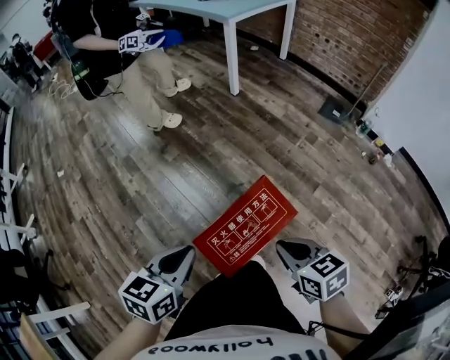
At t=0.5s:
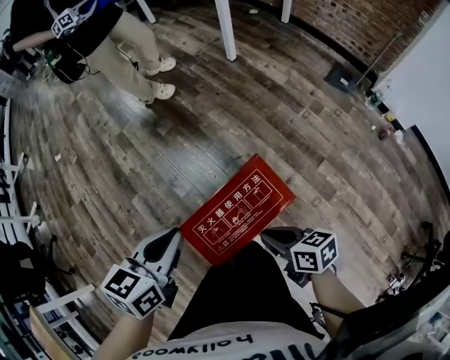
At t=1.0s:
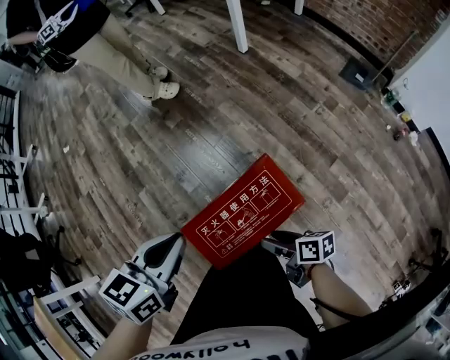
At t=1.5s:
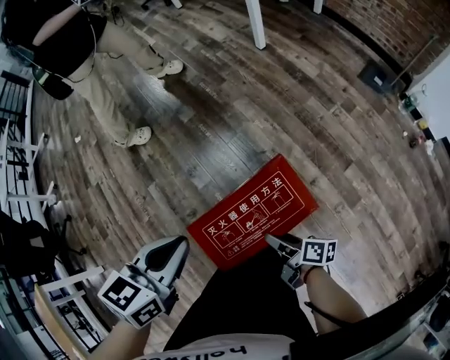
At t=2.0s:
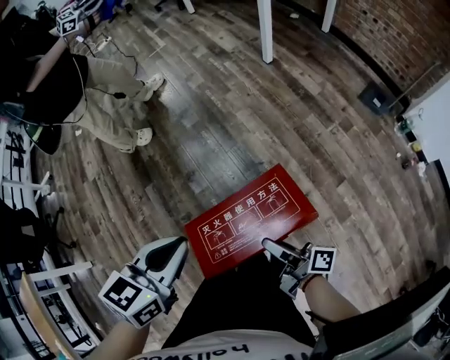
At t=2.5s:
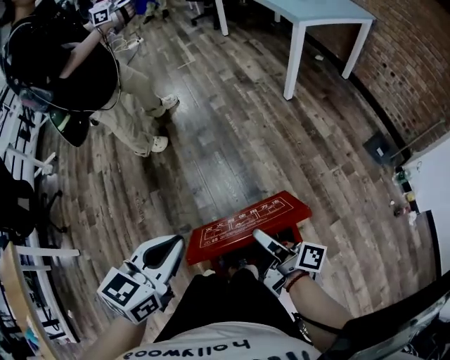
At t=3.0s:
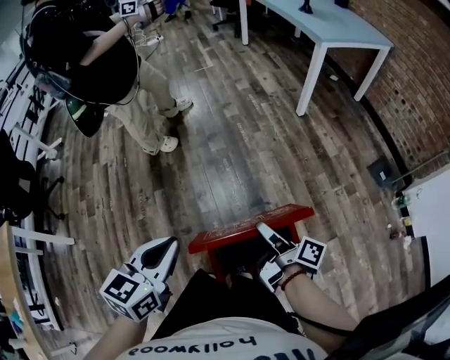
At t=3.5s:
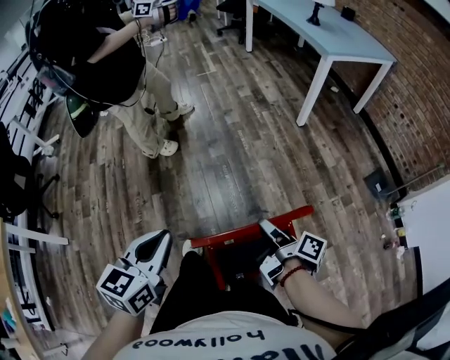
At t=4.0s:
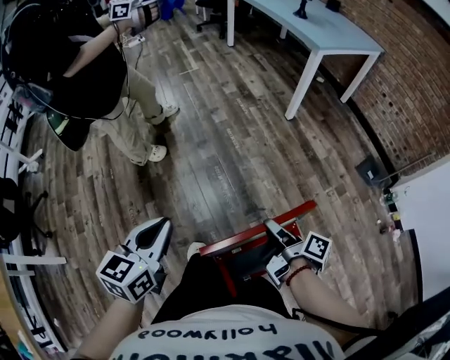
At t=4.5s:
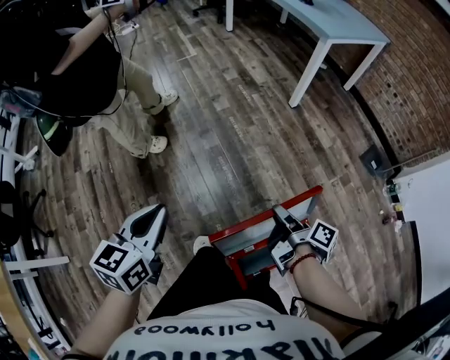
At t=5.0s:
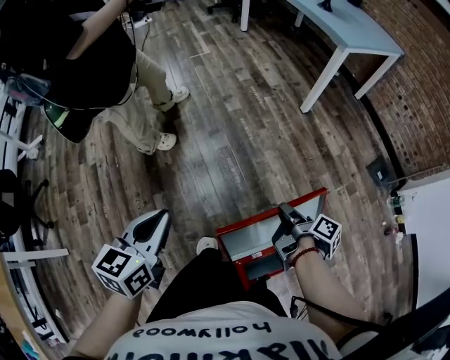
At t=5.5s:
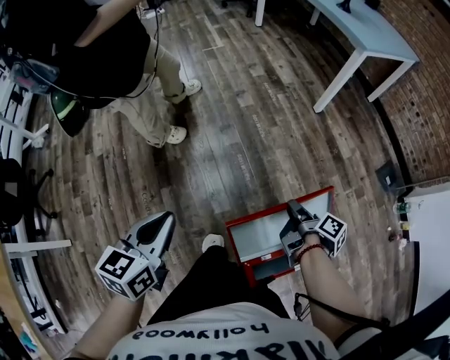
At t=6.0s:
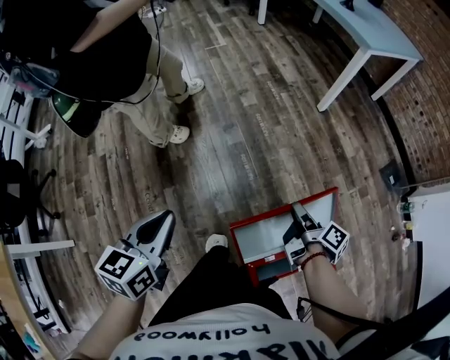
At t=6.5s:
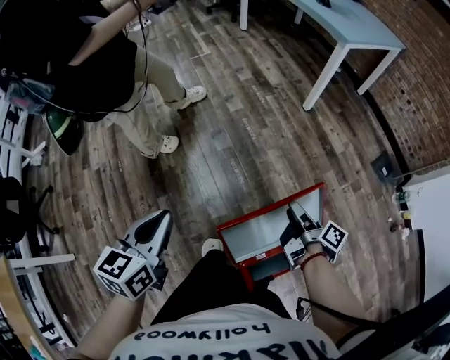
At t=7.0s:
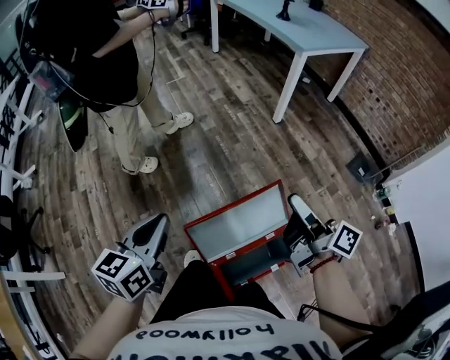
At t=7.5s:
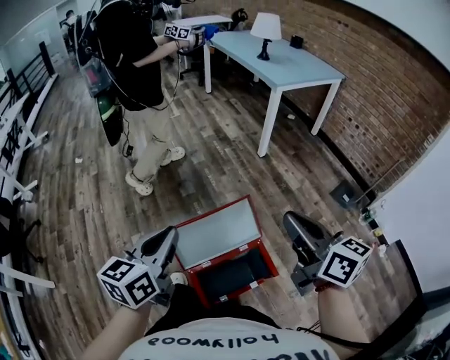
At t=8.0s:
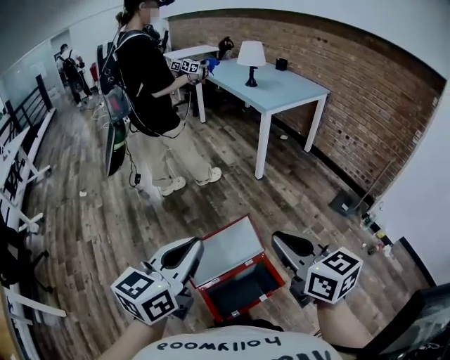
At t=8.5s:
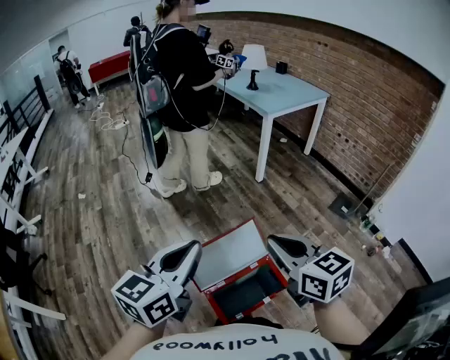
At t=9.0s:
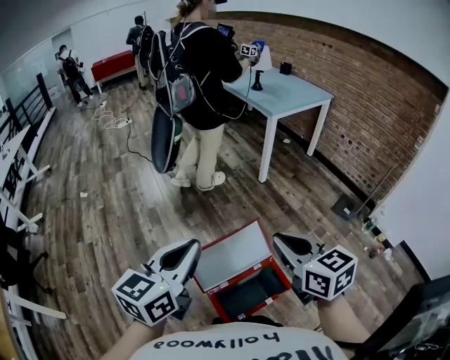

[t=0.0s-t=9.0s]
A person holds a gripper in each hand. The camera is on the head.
t=0.0s to t=2.0s: The right gripper is displaced downward by roughly 10 cm, tips its fingers upward by some 40 degrees, and opens.
t=2.0s to t=4.5s: The right gripper moves forward, some 25 cm, and turns by about 30 degrees. Meanwhile the left gripper moves to the left and forward, about 30 cm, and rotates roughly 20 degrees.
t=4.5s to t=7.0s: The left gripper goes some 5 cm to the right. The right gripper heads upward, covering some 15 cm, and changes its angle by about 40 degrees.
t=7.0s to t=9.0s: The left gripper is displaced upward, backward and to the right by some 20 cm. The right gripper travels backward and upward by about 20 cm, rolls counterclockwise, seen from behind, by some 60 degrees, and closes up.

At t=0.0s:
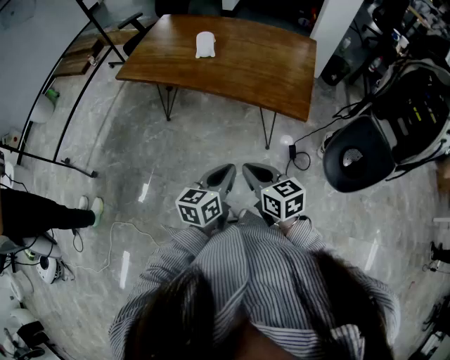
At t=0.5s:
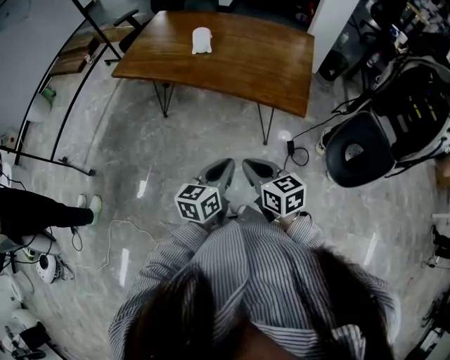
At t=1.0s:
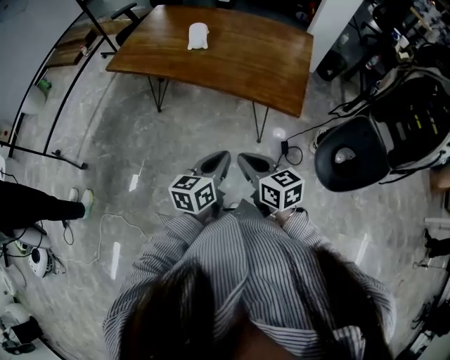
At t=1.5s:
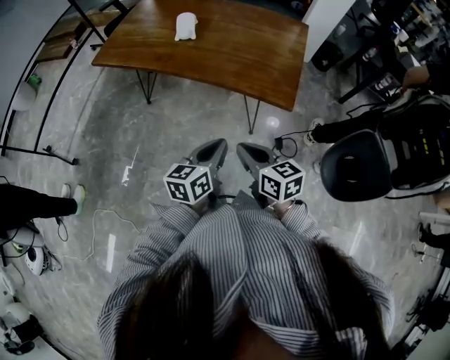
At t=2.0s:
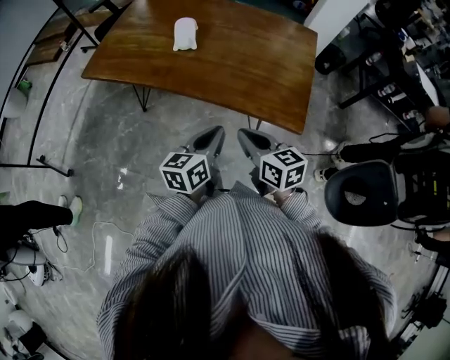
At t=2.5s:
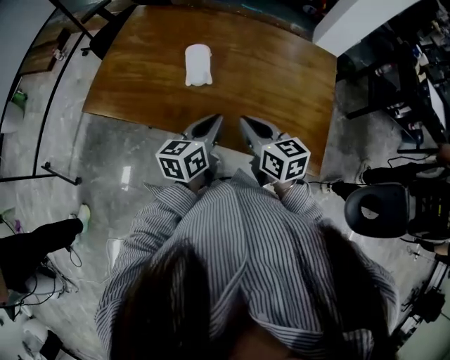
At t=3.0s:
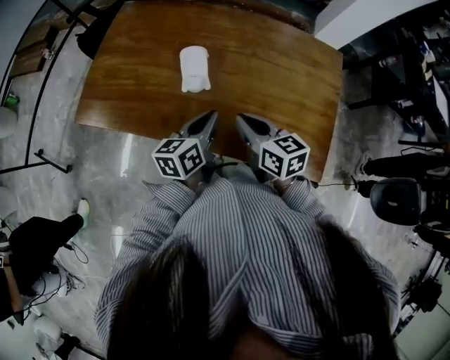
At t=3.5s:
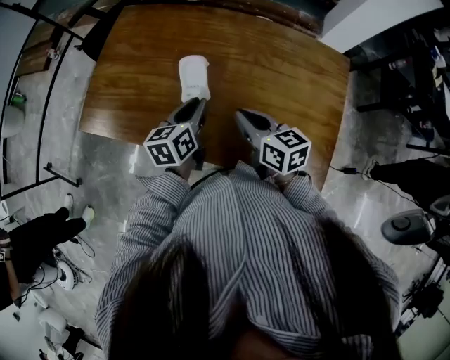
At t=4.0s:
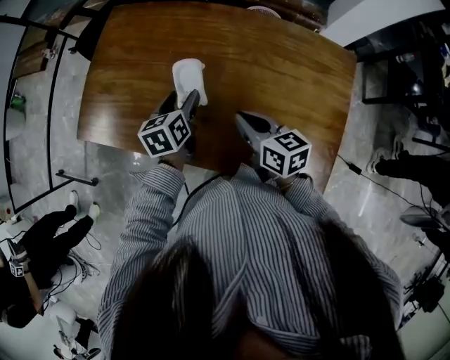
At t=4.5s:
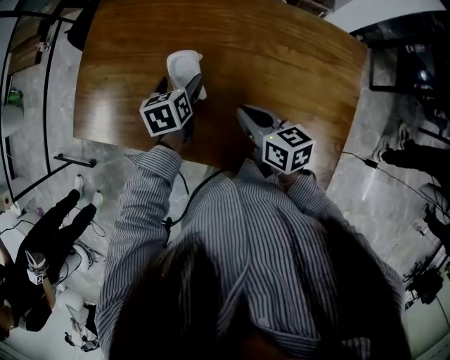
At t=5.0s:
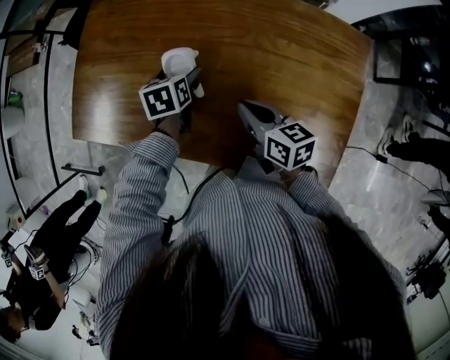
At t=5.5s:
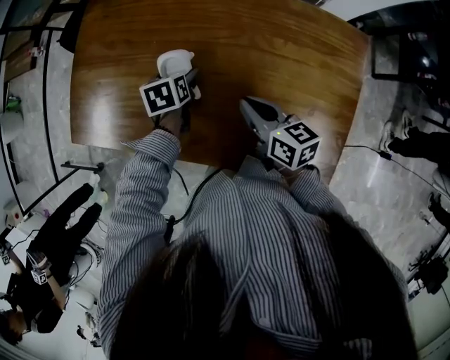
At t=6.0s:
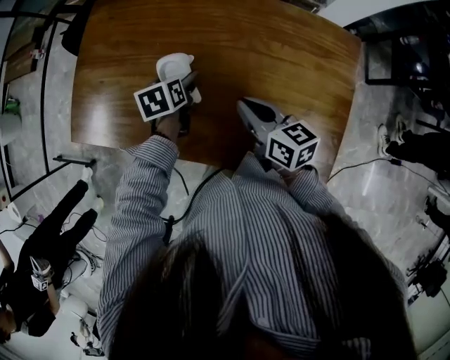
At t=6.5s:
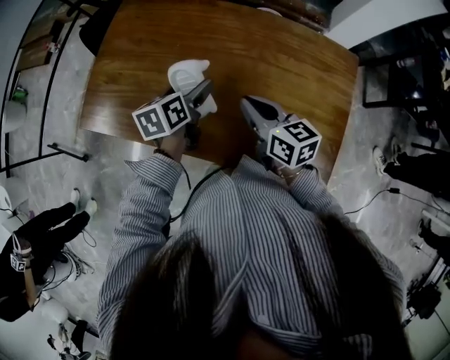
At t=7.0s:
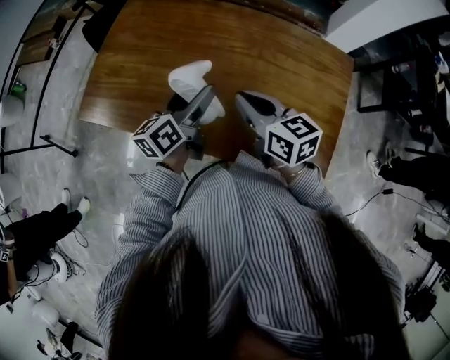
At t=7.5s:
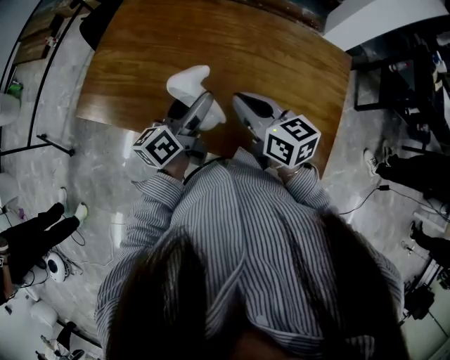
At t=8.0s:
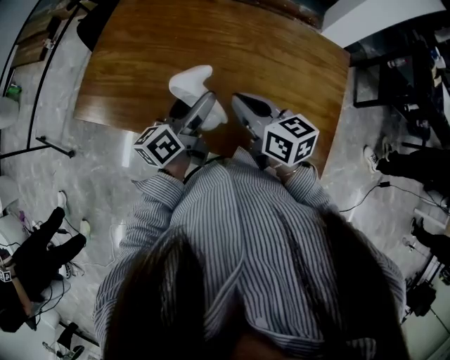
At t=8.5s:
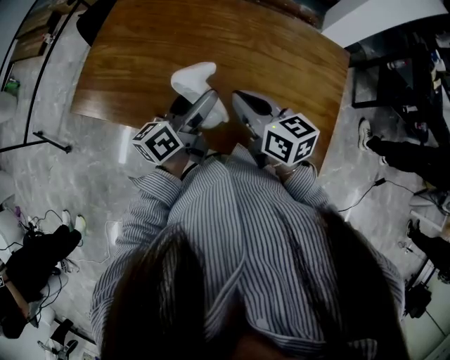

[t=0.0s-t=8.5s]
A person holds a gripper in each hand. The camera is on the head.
t=0.0s to t=2.0s: The two grippers go approximately 20 cm forward.
t=2.0s to t=4.0s: The grippers both shift forward by about 40 cm. The left gripper swivels about 30 degrees, and opens up.
t=4.0s to t=6.5s: The left gripper moves approximately 10 cm downward and comes back, and opens up.
t=6.5s to t=8.5s: The right gripper shifts by about 5 cm; the left gripper goes about 10 cm backward and upward, and tilts its fingers some 30 degrees upward.

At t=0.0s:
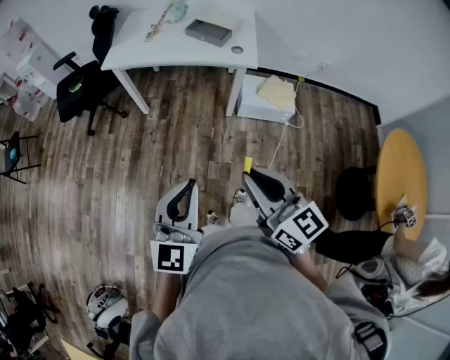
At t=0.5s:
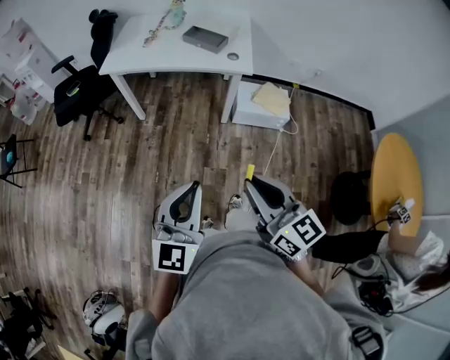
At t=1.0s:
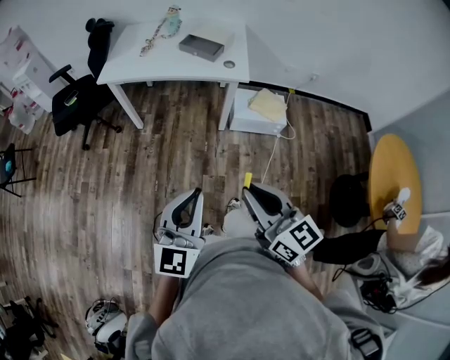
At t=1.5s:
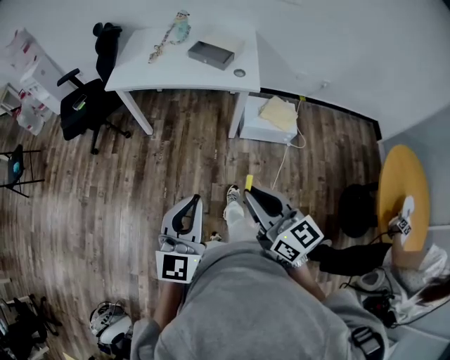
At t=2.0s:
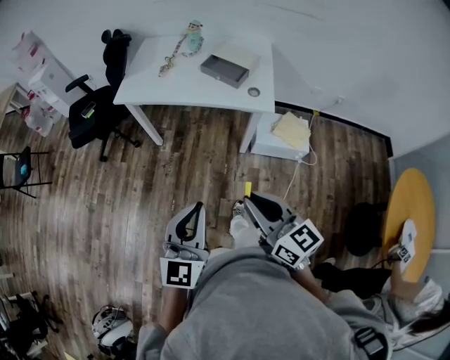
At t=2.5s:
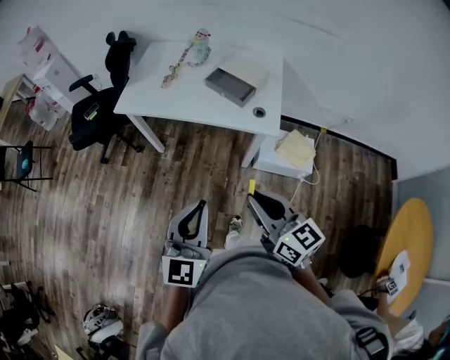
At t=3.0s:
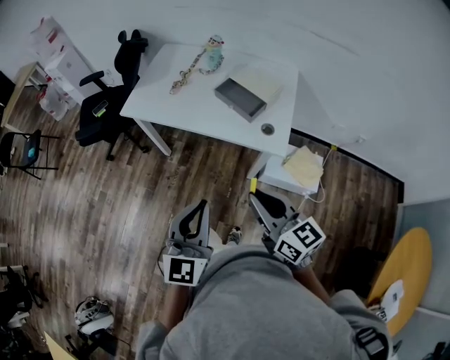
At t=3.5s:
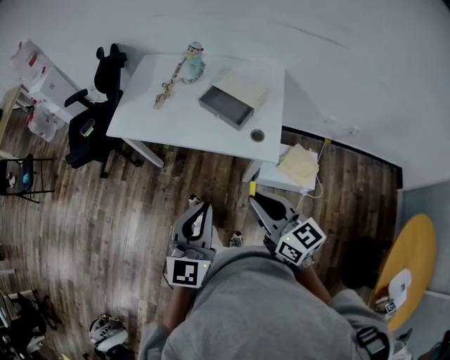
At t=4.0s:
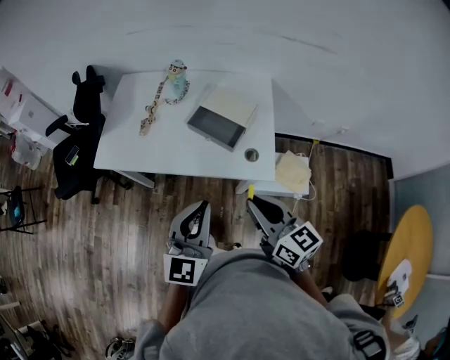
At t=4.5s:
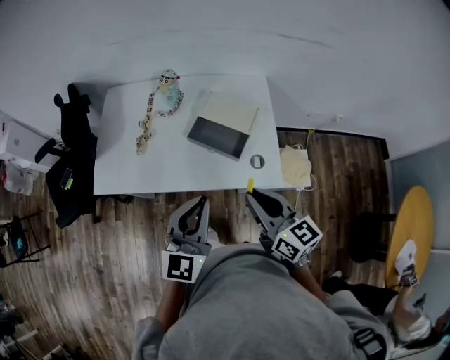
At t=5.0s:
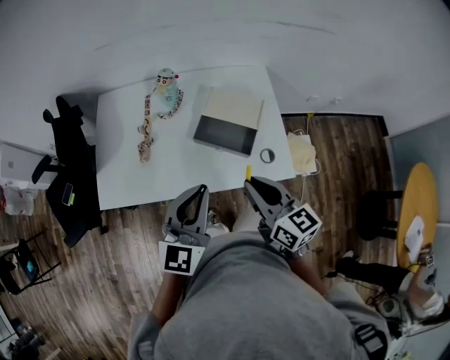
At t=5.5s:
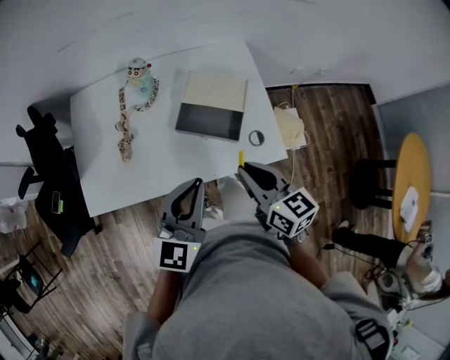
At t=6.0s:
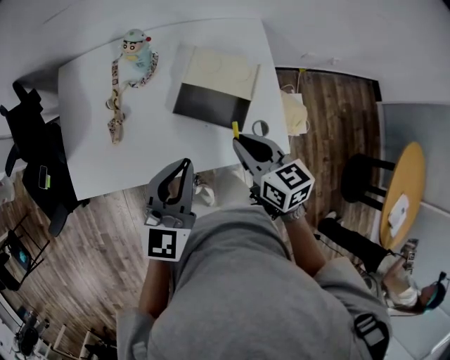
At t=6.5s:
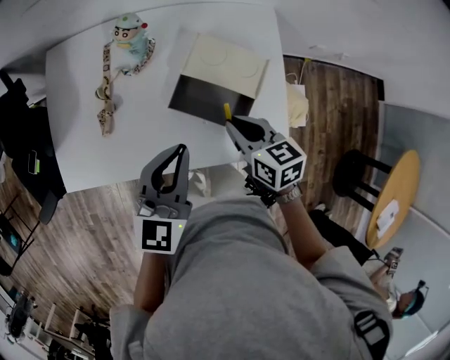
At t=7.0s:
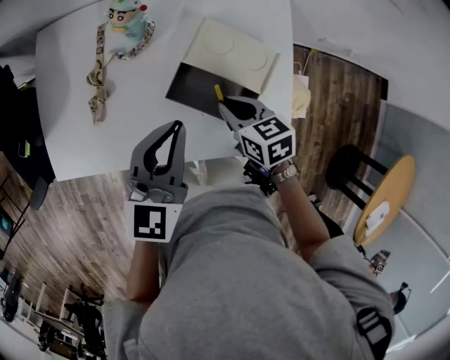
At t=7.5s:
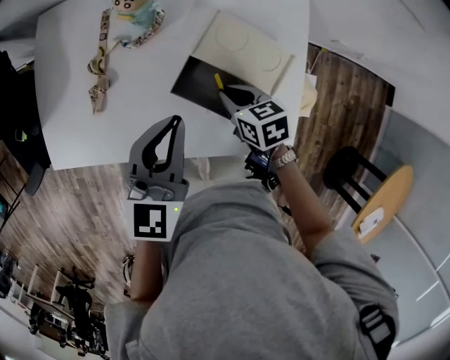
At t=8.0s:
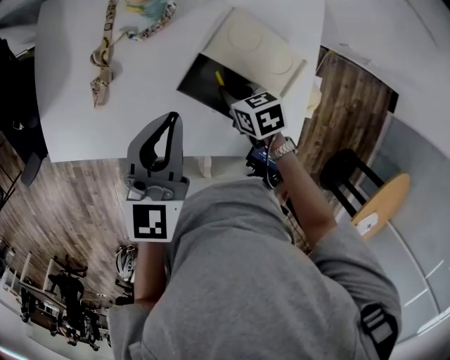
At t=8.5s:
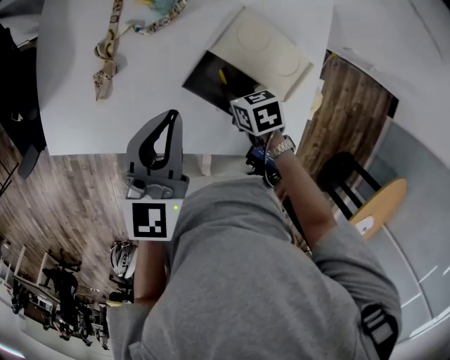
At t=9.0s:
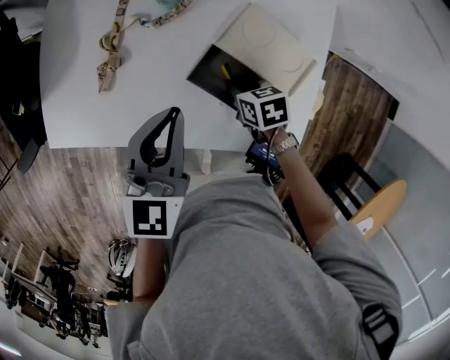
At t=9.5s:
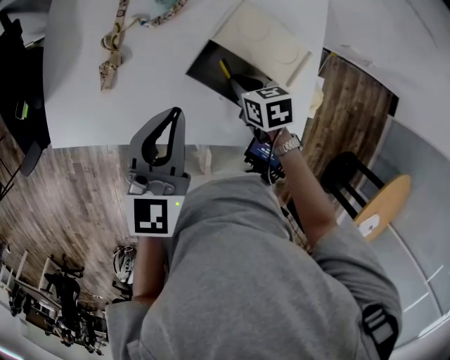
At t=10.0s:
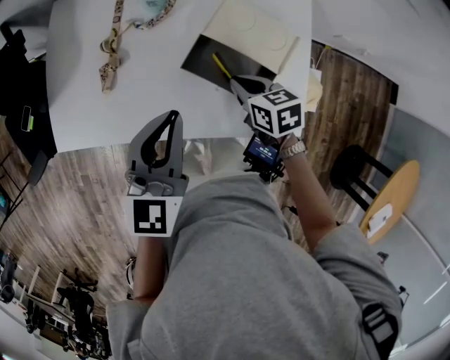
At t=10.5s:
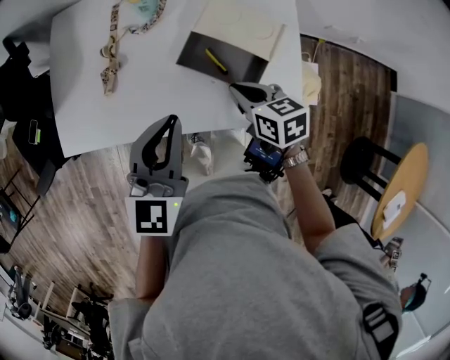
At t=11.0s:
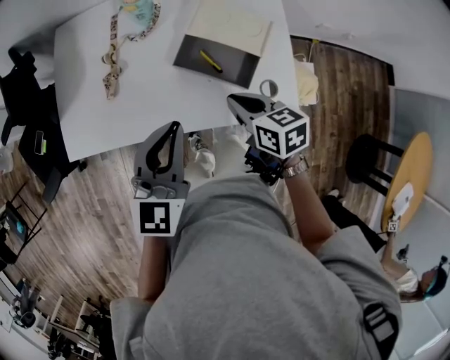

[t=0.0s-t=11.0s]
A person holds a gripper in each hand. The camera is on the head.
t=0.0s to t=2.0s: The grippers both shift forward by about 15 cm.
t=2.0s to t=3.5s: The two grippers go roughly 25 cm forward and to the right.
t=3.5s to t=5.5s: The left gripper shifts by about 30 cm, and swivels about 30 degrees; the right gripper changes place by roughly 25 cm, and swivels approximately 30 degrees.
t=5.5s to t=7.5s: The left gripper moves forward and downward, roughly 20 cm. Meanwhile the right gripper travels downward and forward by some 30 cm, and tips its fingers downward by some 30 degrees.
t=7.5s to t=9.0s: The right gripper shifts approximately 5 cm downward.
t=9.0s to t=11.0s: The left gripper moves backward, about 15 cm. The right gripper is displaced upward and backward by some 20 cm, and turns by roughly 30 degrees.
